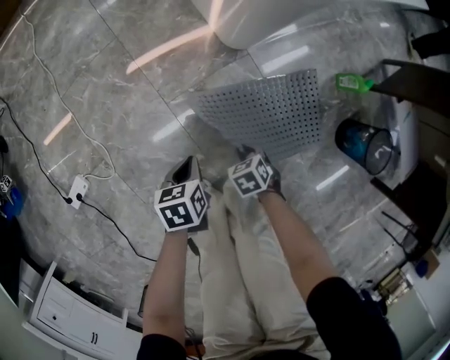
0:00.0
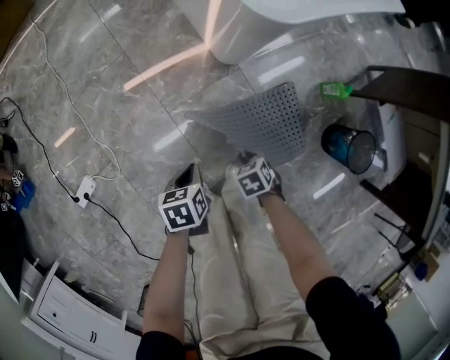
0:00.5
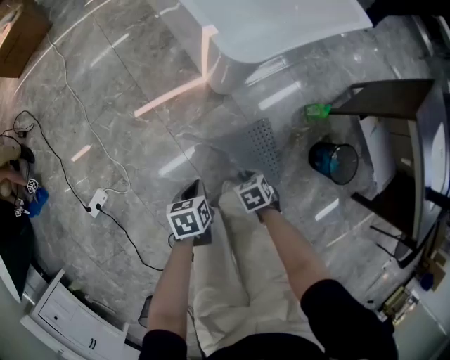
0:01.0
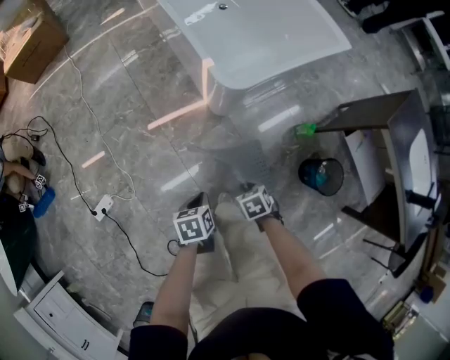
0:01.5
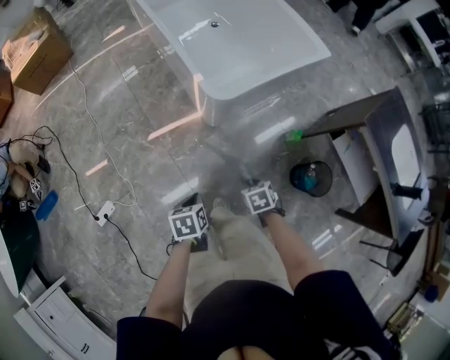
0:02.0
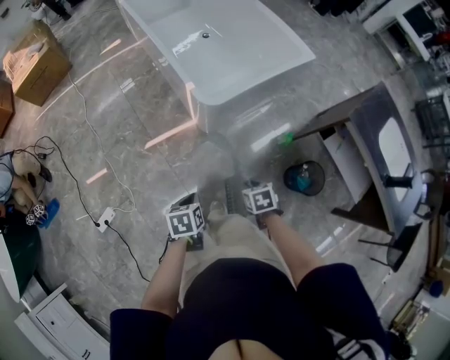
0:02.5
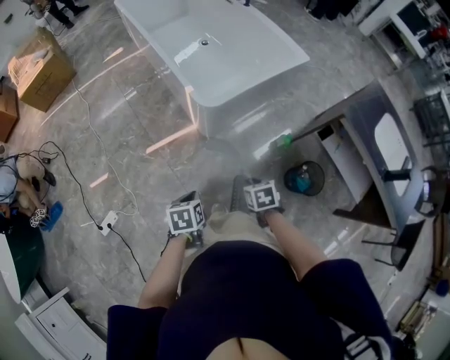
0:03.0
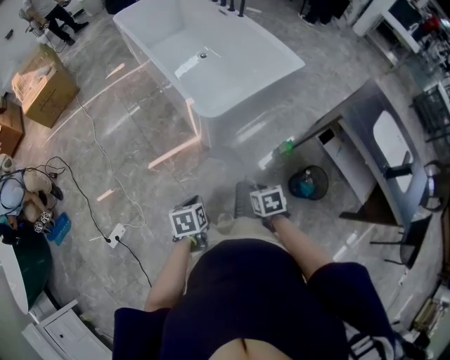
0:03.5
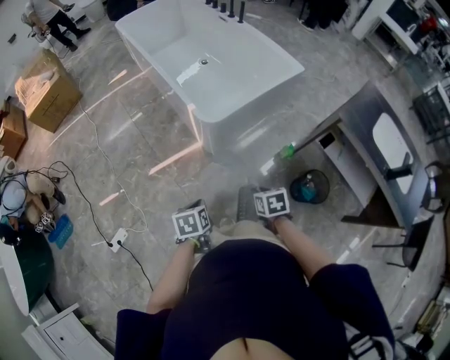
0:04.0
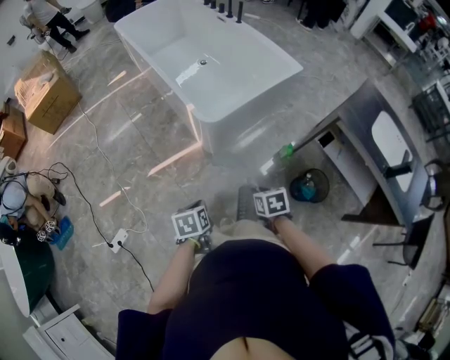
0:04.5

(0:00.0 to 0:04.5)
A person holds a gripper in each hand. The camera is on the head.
0:00.0 - 0:02.0: Both grippers move upward, approximately 40 cm.
0:02.0 - 0:04.5: The right gripper moves upward, roughly 10 cm, and rotates roughly 20 degrees, while the left gripper heads upward, covering roughly 5 cm.

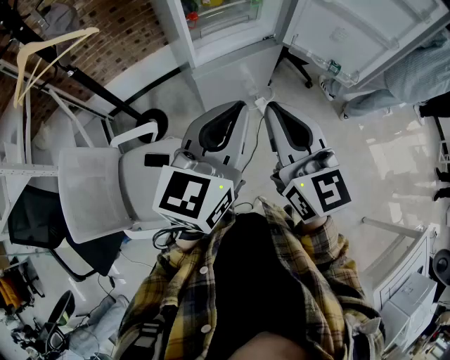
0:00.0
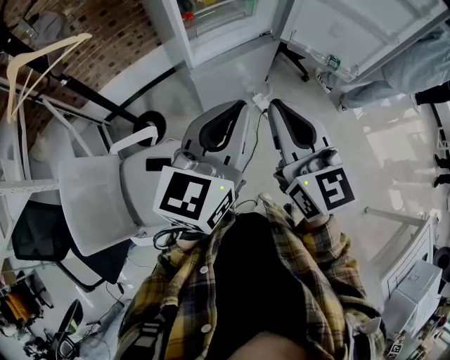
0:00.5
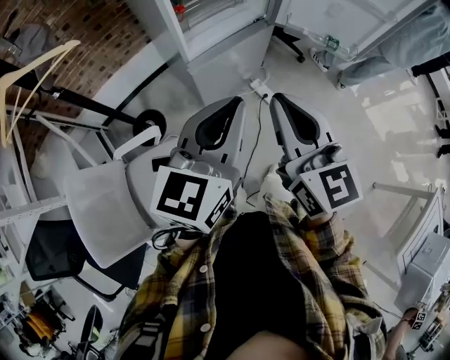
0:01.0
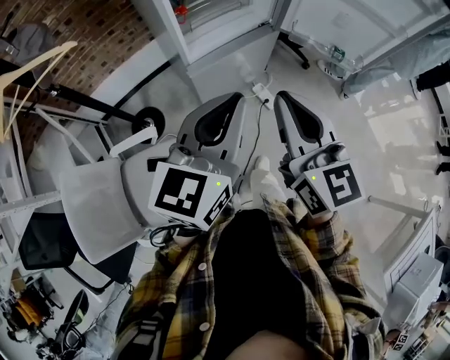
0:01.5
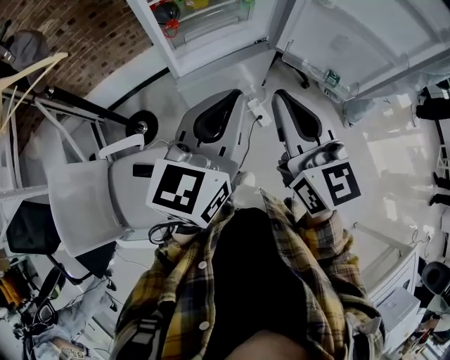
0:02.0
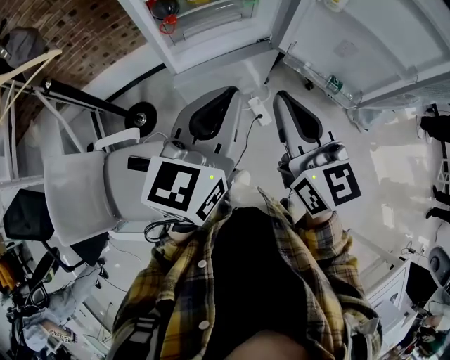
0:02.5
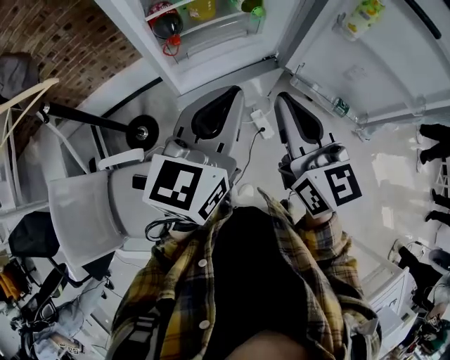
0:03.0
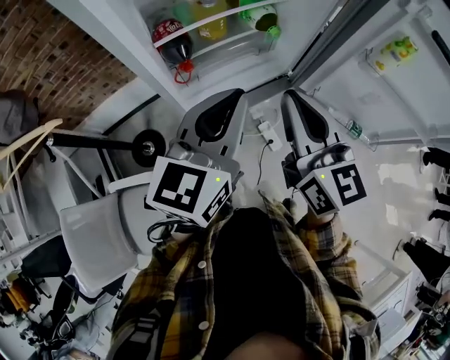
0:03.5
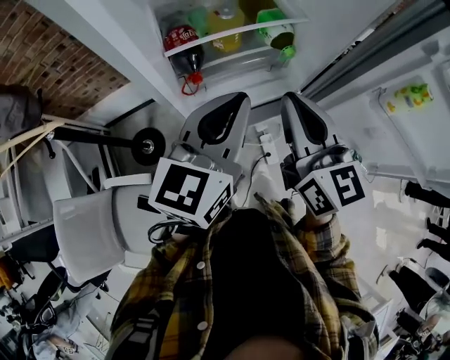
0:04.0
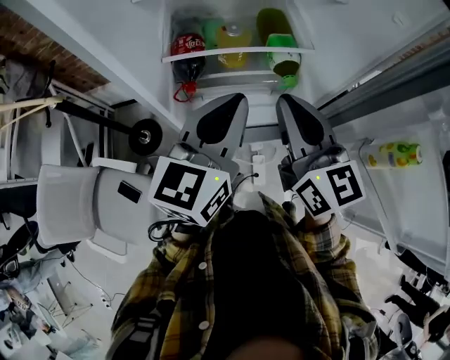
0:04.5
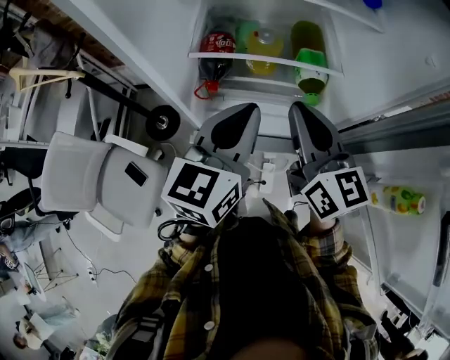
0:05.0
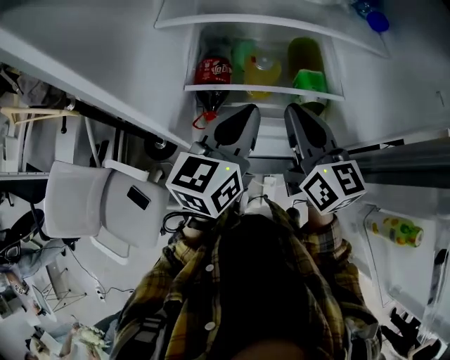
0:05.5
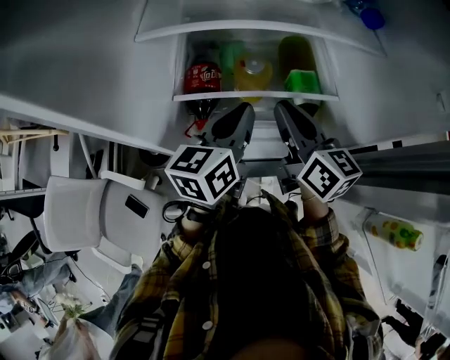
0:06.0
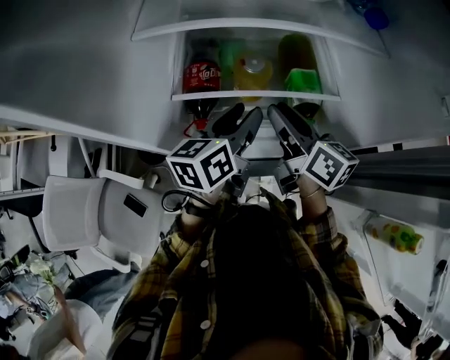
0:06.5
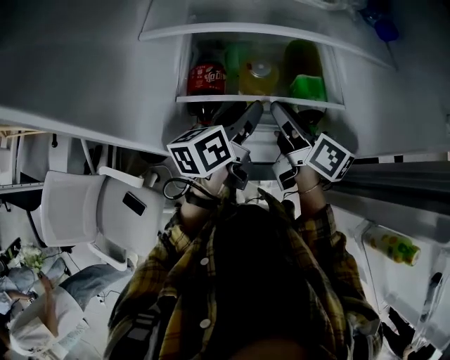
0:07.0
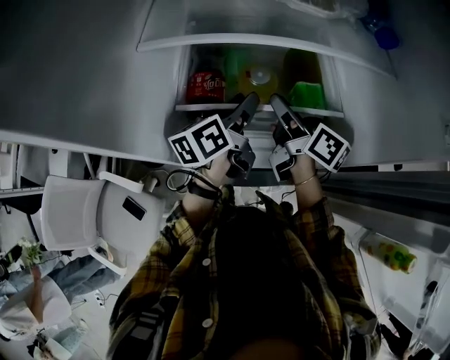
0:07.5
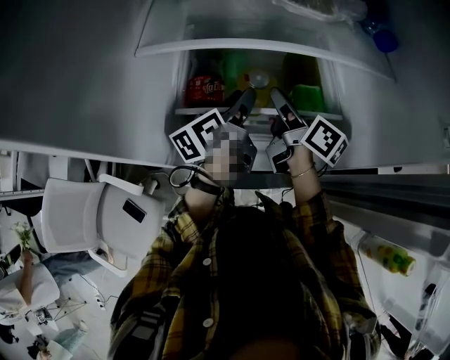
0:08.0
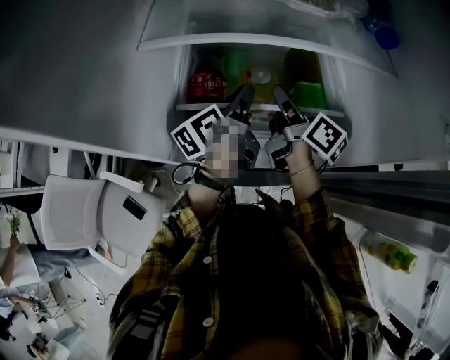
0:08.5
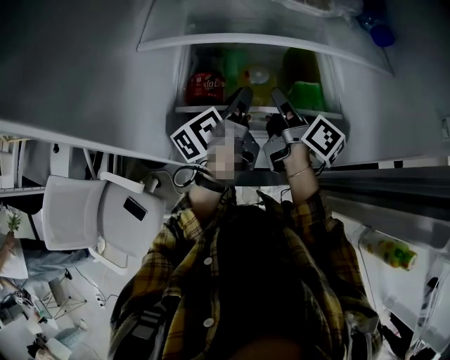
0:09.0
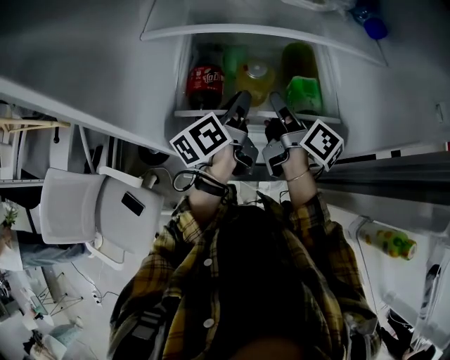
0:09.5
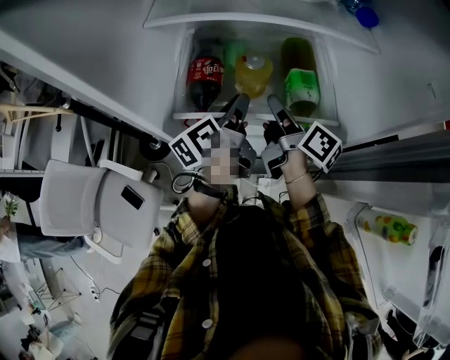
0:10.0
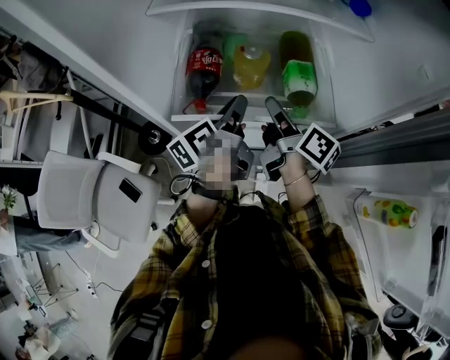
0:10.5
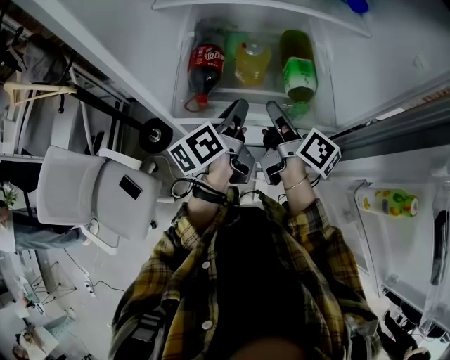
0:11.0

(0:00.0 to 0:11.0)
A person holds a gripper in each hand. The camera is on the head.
0:00.0 - 0:02.0: The left gripper moves forward, about 15 cm. The right gripper travels forward and to the right by roughly 15 cm.
0:02.0 - 0:03.5: Both grippers travel together forward, roughly 20 cm.
0:03.5 - 0:05.5: The left gripper moves approximately 20 cm, and swivels roughly 30 degrees. Meanwhile the right gripper moves approximately 25 cm, and turns by roughly 30 degrees.
0:05.5 - 0:07.5: Both grippers move forward and downward, about 15 cm. The right gripper twists roughly 40 degrees clockwise, seen from behind, and opens up. The left gripper swivels roughly 30 degrees, and opens its fingers.
0:07.5 - 0:09.0: The left gripper closes.
0:09.0 - 0:11.0: Both grippers move backward, roughly 15 cm.

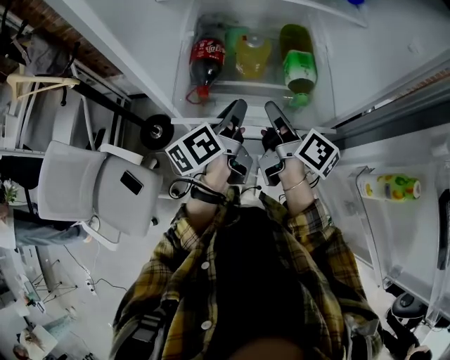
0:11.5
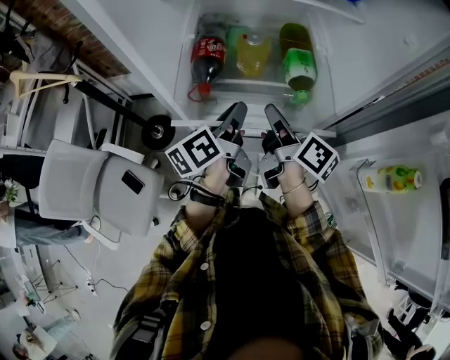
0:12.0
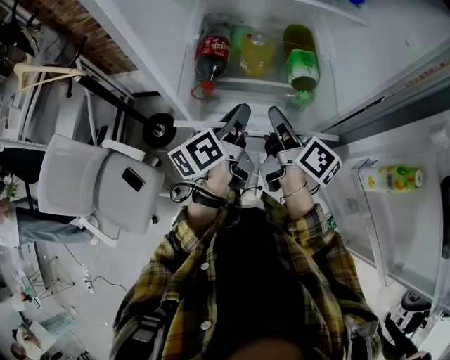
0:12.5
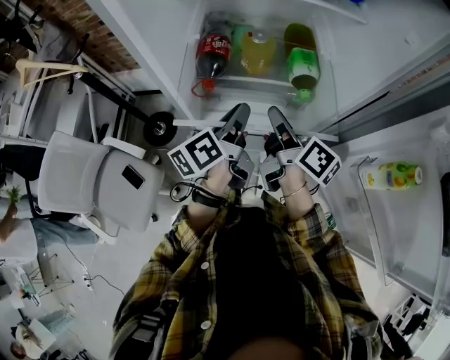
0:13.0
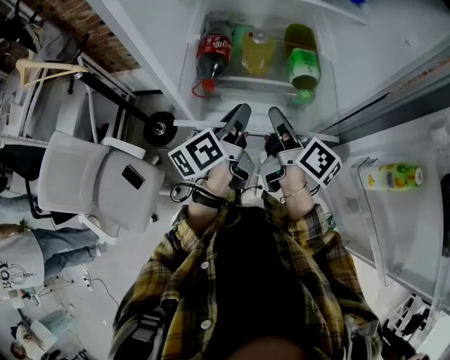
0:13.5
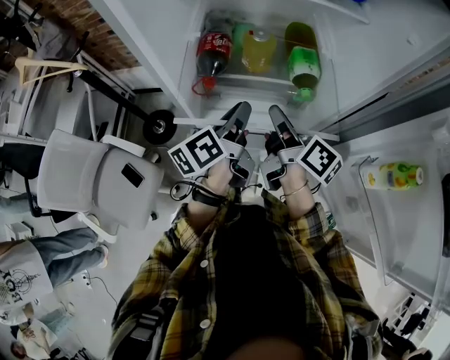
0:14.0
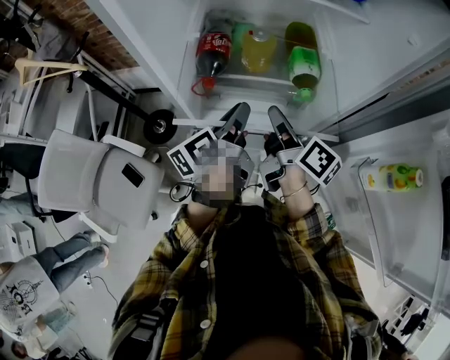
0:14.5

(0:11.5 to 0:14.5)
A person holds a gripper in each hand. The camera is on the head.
0:11.5 - 0:13.0: There are only small adjustments of the grippers.
0:13.0 - 0:14.5: Both grippers stay put.

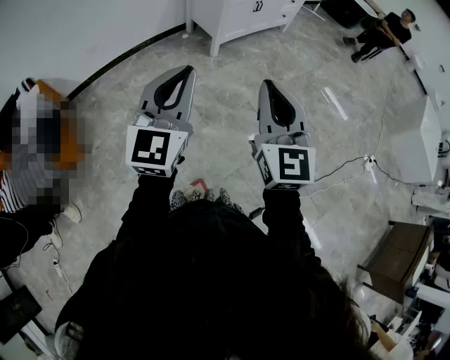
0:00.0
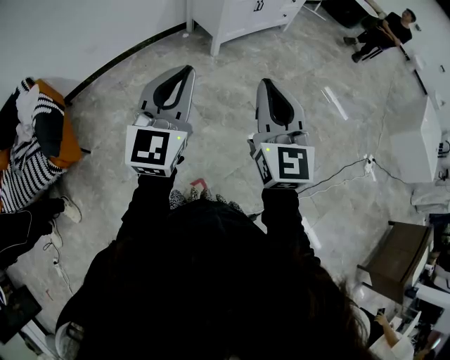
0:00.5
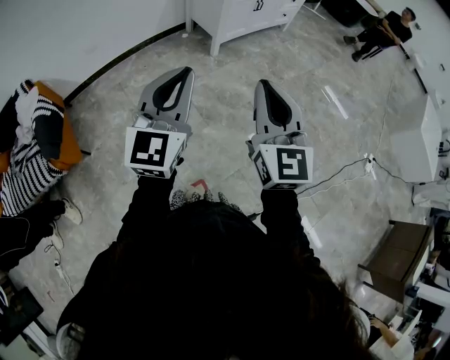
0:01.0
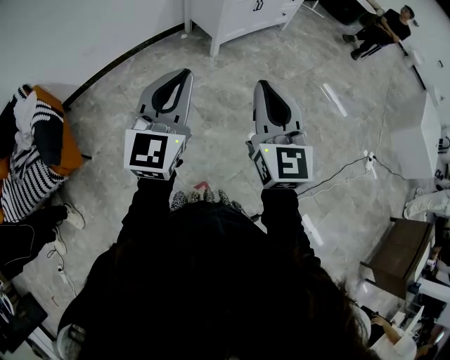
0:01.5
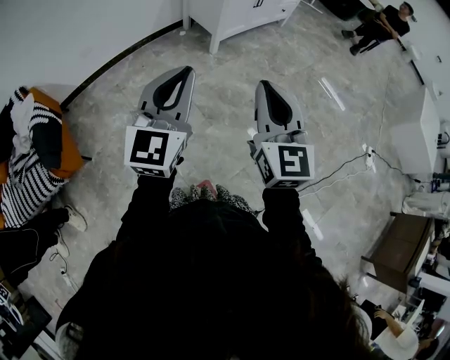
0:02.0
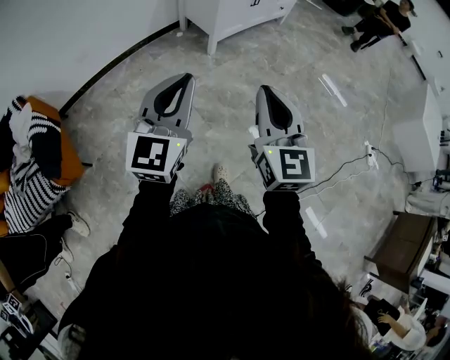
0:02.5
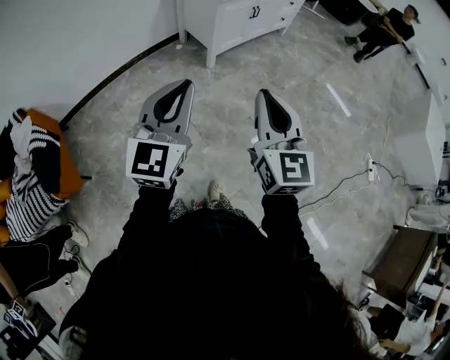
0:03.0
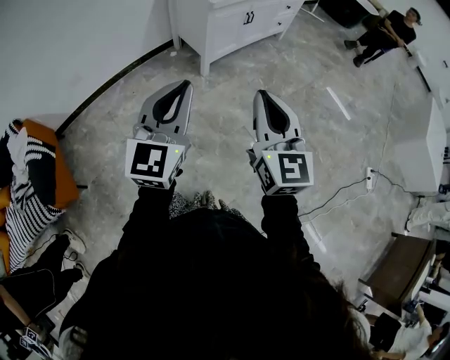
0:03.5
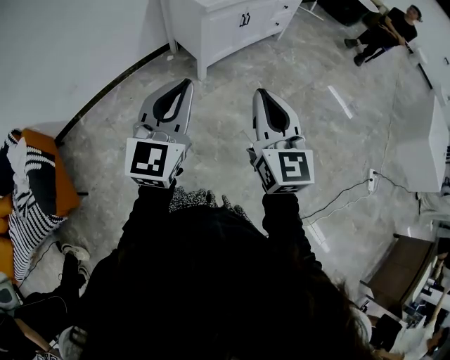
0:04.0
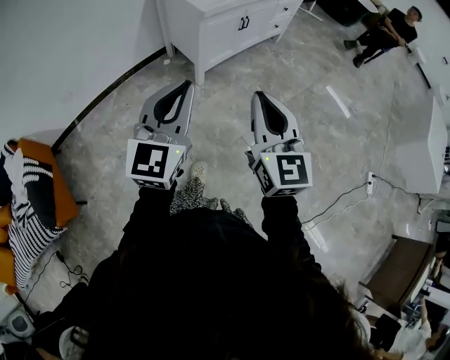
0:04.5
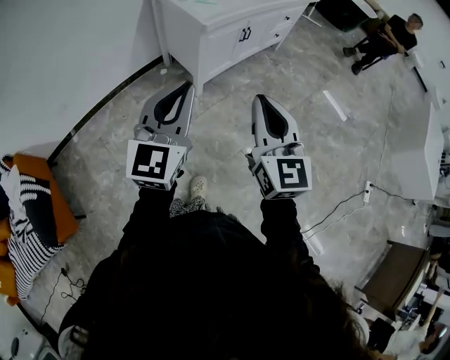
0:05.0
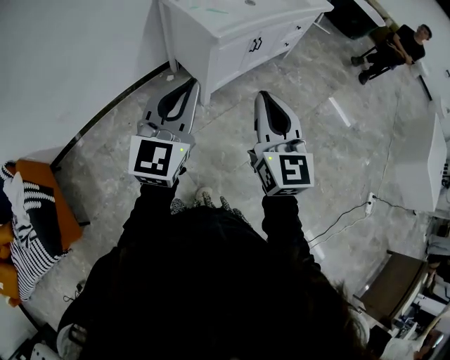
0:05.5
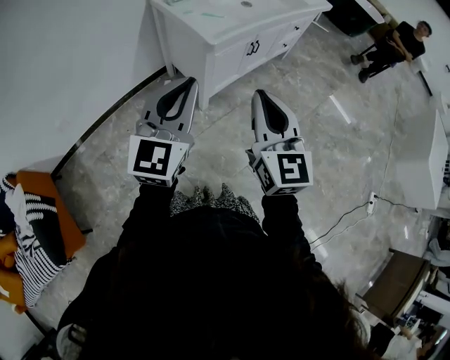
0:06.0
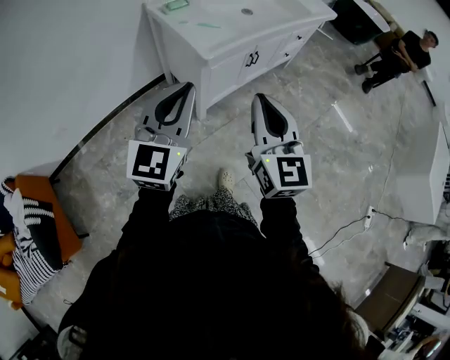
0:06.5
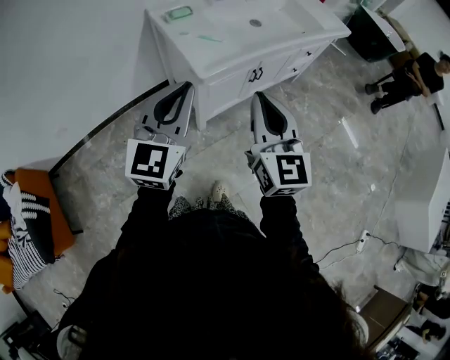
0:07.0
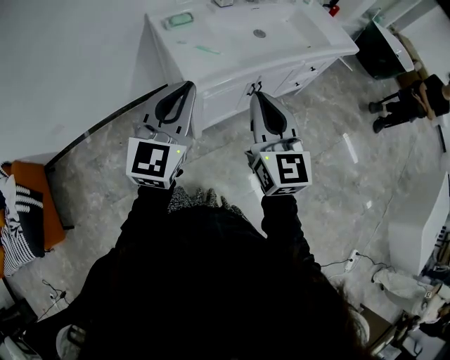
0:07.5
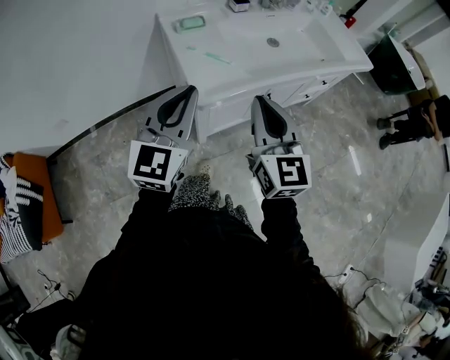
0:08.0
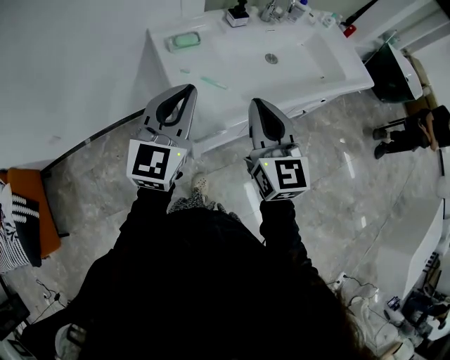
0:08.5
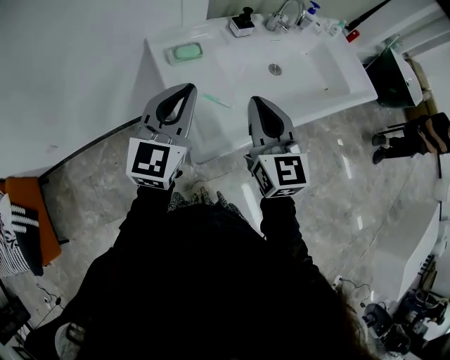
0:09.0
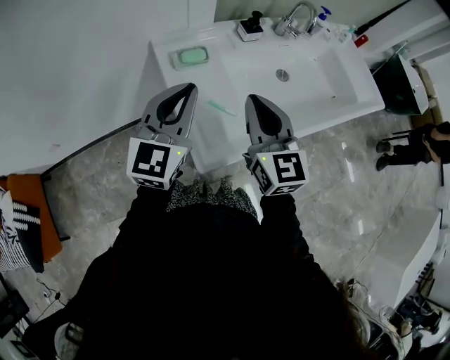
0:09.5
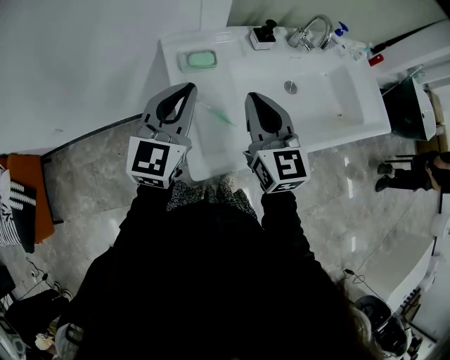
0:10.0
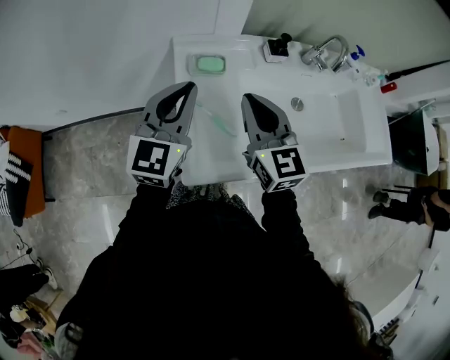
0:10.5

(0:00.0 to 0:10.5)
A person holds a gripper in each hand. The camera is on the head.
0:00.0 - 0:02.0: The left gripper is displaced to the left and forward by approximately 5 cm; the right gripper heads to the left, covering some 5 cm.
0:02.0 - 0:04.0: The grippers both shift forward and to the right by some 25 cm.
0:04.0 - 0:06.5: Both grippers move forward, about 35 cm.
0:06.5 - 0:08.5: The grippers both shift forward by about 30 cm.
0:08.5 - 0:10.5: Both grippers move forward, some 15 cm. The right gripper changes its angle by about 20 degrees.
